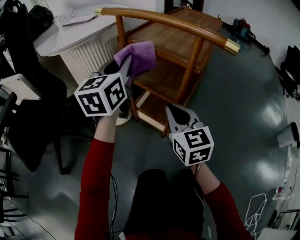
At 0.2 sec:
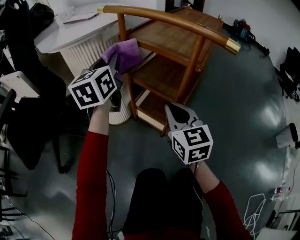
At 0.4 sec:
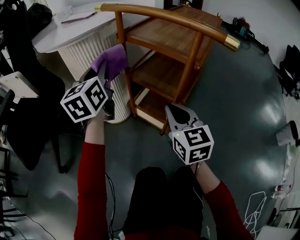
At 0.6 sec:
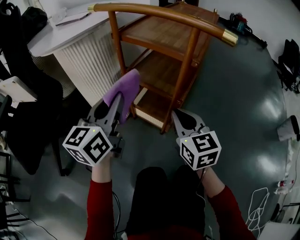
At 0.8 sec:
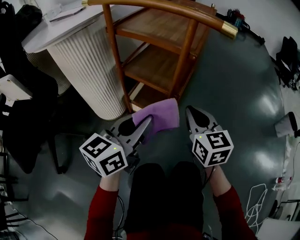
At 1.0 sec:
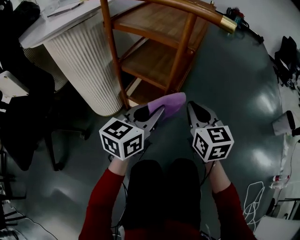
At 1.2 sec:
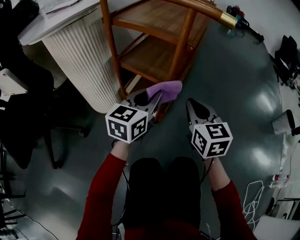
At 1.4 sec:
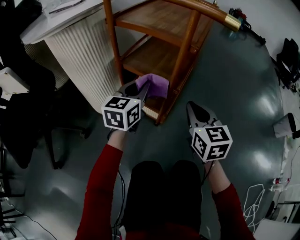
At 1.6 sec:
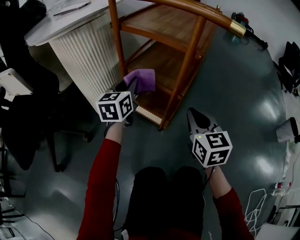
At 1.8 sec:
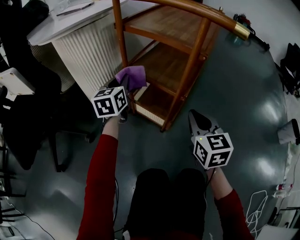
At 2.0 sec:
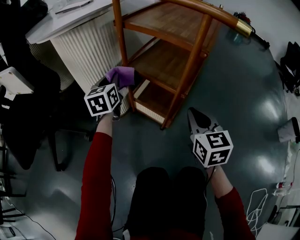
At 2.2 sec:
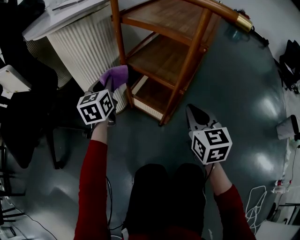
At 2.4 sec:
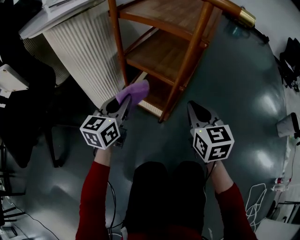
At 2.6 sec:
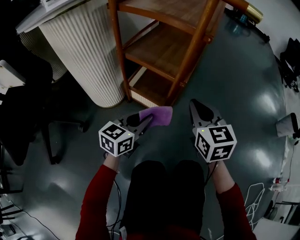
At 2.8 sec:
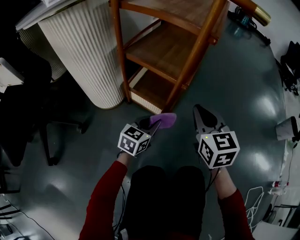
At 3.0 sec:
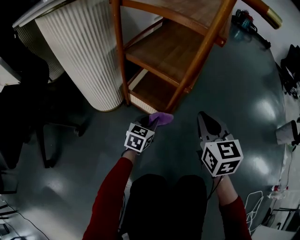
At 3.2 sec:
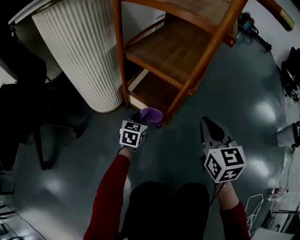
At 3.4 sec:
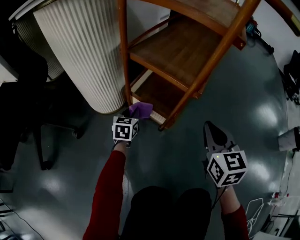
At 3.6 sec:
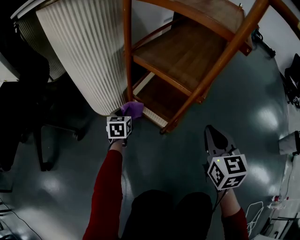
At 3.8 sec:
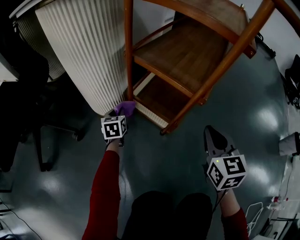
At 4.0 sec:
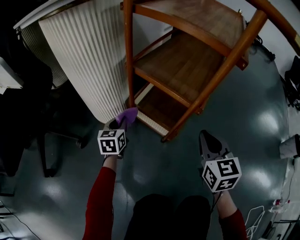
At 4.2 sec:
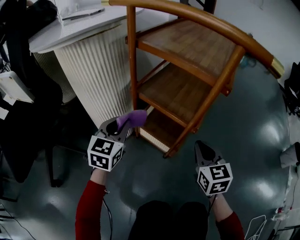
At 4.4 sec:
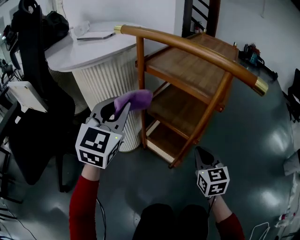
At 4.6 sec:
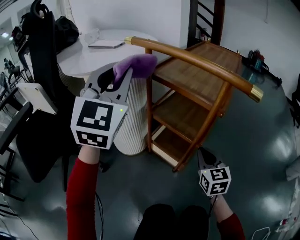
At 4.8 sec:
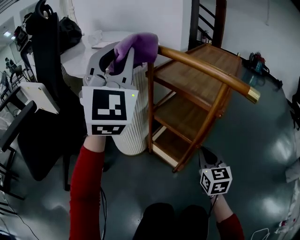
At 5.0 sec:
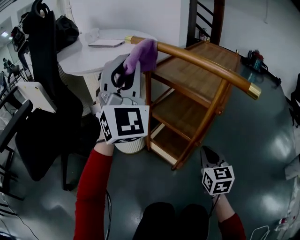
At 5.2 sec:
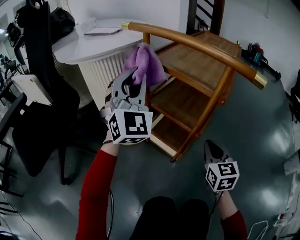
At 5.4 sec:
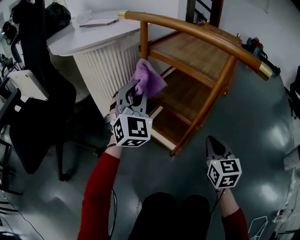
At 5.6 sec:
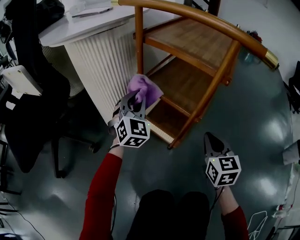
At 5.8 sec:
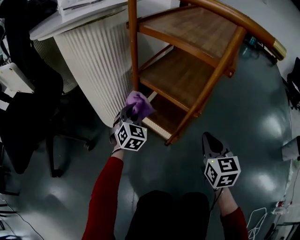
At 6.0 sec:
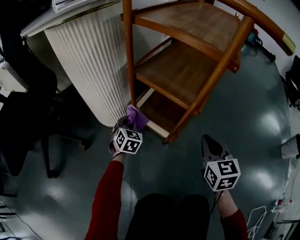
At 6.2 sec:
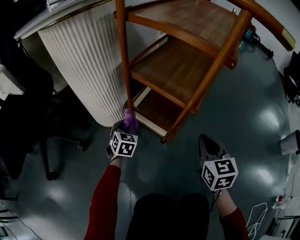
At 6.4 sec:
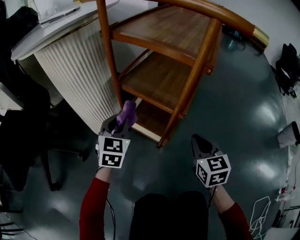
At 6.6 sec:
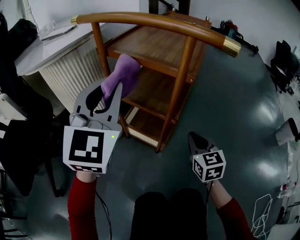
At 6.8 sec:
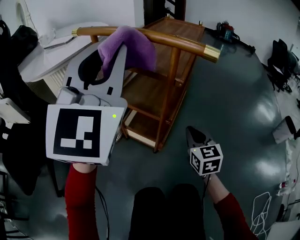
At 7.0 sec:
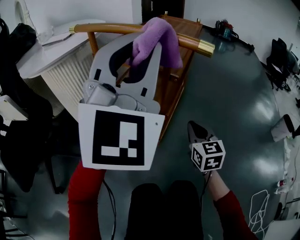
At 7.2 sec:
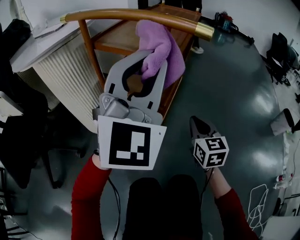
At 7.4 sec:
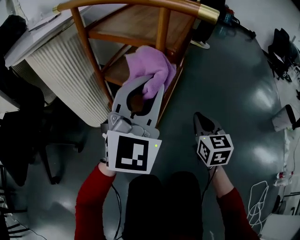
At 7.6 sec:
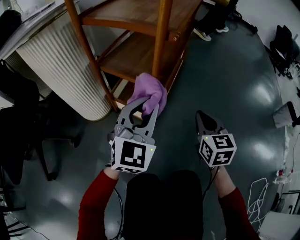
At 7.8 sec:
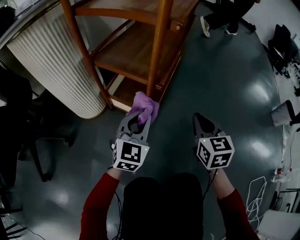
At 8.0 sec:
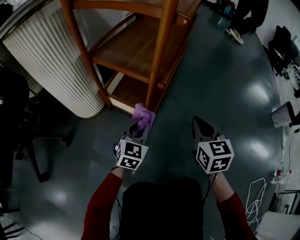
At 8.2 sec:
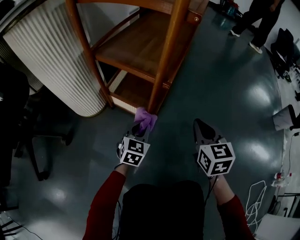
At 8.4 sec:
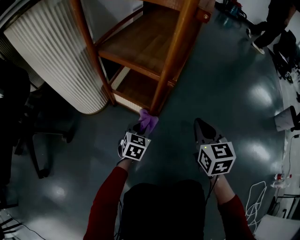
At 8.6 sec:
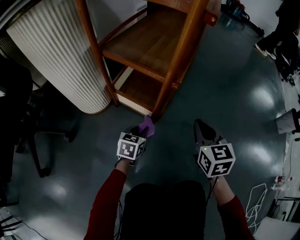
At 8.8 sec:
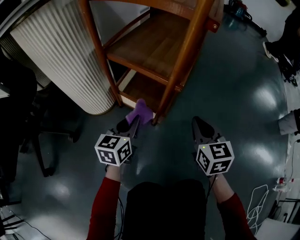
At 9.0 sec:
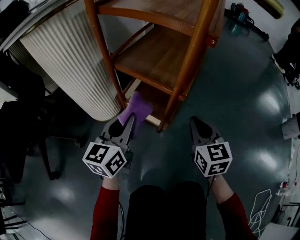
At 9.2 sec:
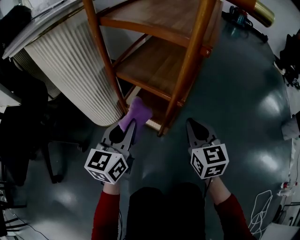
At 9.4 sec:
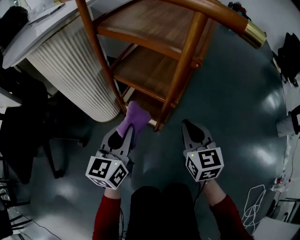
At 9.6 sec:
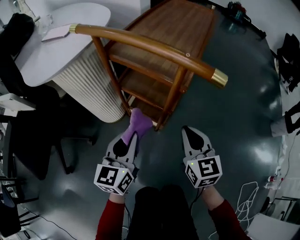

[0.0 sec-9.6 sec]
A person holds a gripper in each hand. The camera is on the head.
0.0 sec to 1.6 sec: The right gripper changes place by some 10 cm; the left gripper goes about 20 cm downward.
1.6 sec to 3.2 sec: The right gripper heads downward, covering about 5 cm; the left gripper travels downward by about 25 cm.
3.2 sec to 4.8 sec: The right gripper is displaced forward by some 5 cm; the left gripper goes roughly 60 cm upward, and angles its fingers upward, by approximately 50 degrees.
4.8 sec to 6.4 sec: The right gripper is displaced downward by some 10 cm. Meanwhile the left gripper heads downward, covering approximately 40 cm, and tilts its fingers approximately 40 degrees downward.
6.4 sec to 8.0 sec: The left gripper heads to the right, covering roughly 15 cm, and reaches approximately 40 cm upward, then returns. The right gripper moves to the right, some 5 cm, and travels upward and back again, roughly 5 cm each way.
8.0 sec to 9.6 sec: The right gripper moves upward and to the left, about 20 cm. Meanwhile the left gripper goes roughly 25 cm upward, and turns by approximately 30 degrees.

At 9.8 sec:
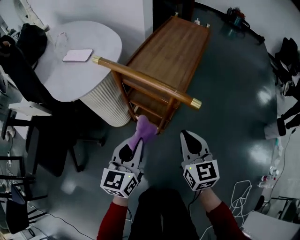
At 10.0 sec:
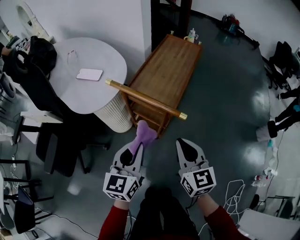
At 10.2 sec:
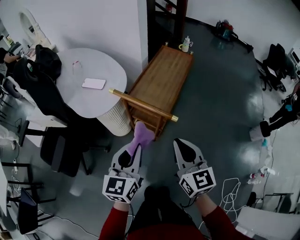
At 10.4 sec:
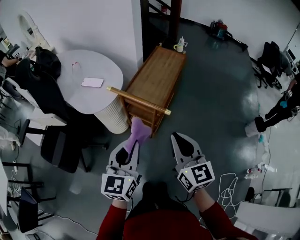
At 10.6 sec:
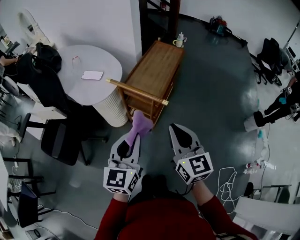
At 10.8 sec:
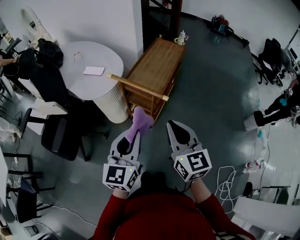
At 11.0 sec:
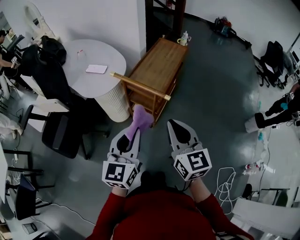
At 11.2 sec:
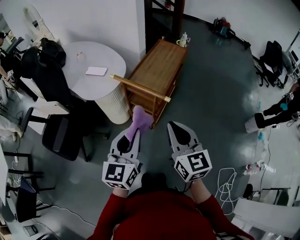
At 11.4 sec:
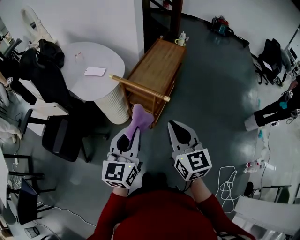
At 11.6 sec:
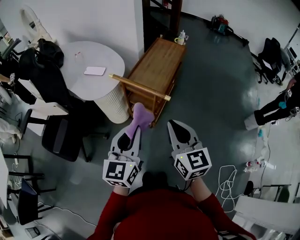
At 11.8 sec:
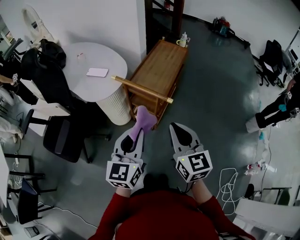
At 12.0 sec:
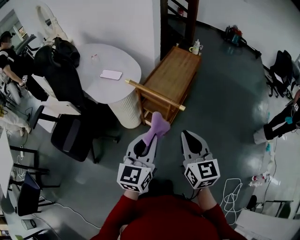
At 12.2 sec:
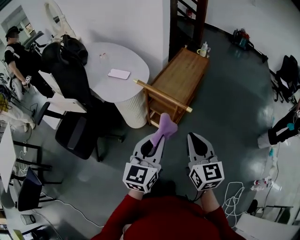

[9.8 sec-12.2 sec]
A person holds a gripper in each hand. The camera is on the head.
9.8 sec to 11.0 sec: The two grippers go roughly 30 cm upward and backward.
11.0 sec to 12.2 sec: The grippers move only a little.

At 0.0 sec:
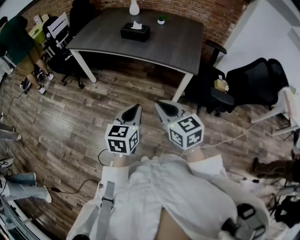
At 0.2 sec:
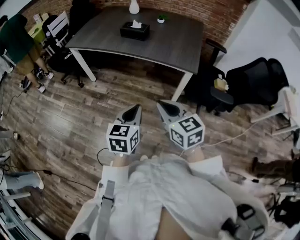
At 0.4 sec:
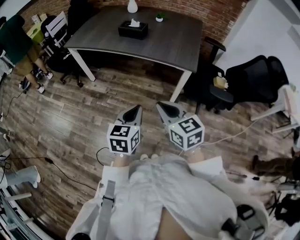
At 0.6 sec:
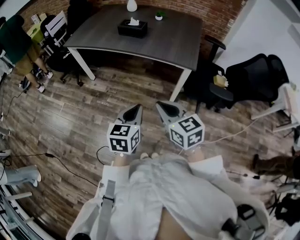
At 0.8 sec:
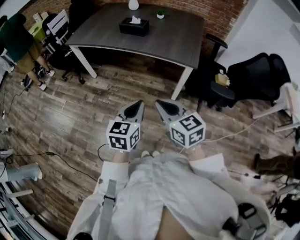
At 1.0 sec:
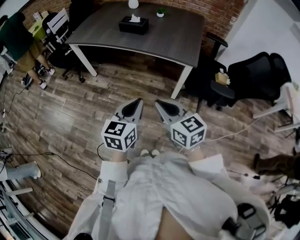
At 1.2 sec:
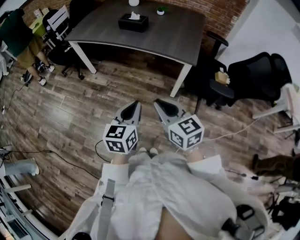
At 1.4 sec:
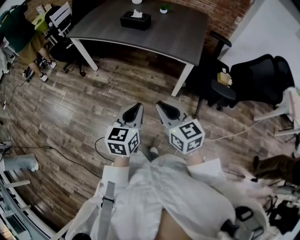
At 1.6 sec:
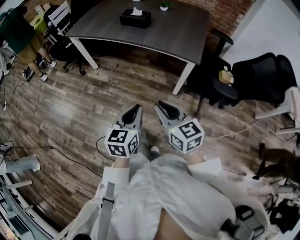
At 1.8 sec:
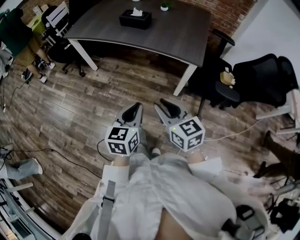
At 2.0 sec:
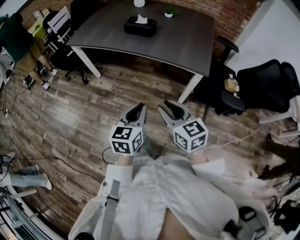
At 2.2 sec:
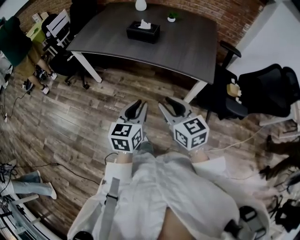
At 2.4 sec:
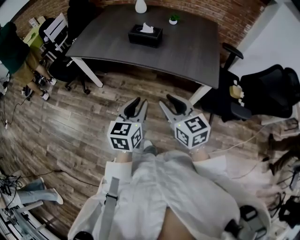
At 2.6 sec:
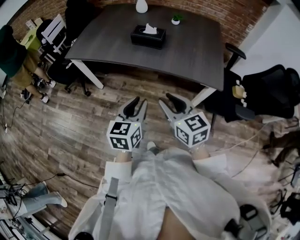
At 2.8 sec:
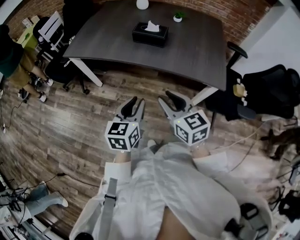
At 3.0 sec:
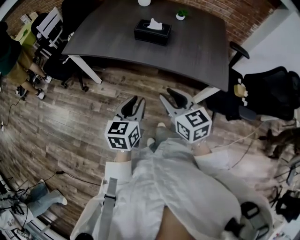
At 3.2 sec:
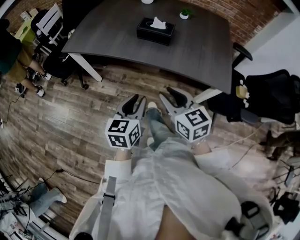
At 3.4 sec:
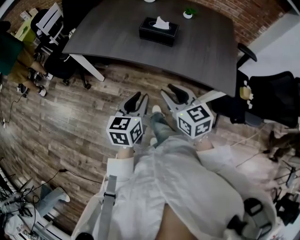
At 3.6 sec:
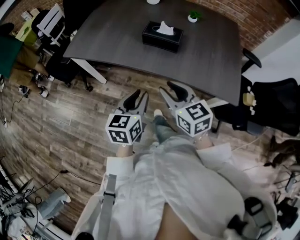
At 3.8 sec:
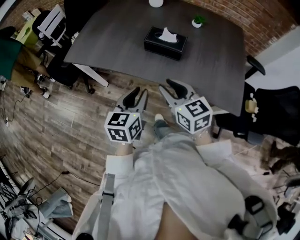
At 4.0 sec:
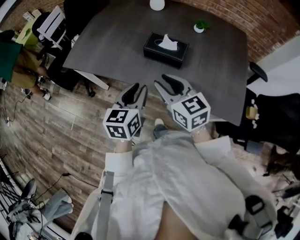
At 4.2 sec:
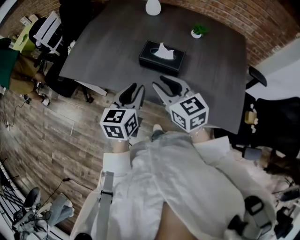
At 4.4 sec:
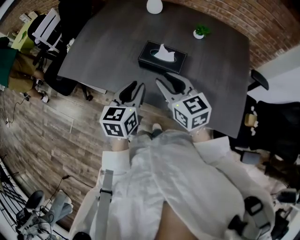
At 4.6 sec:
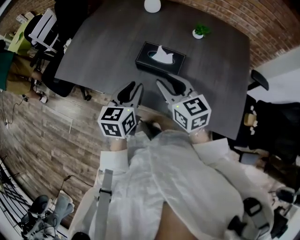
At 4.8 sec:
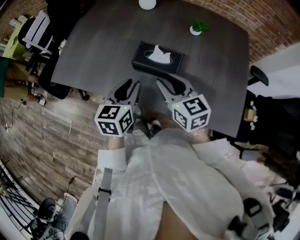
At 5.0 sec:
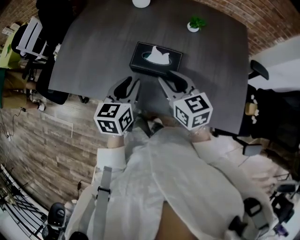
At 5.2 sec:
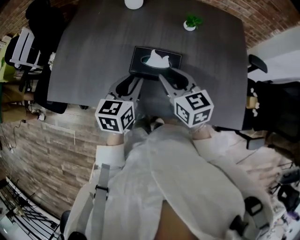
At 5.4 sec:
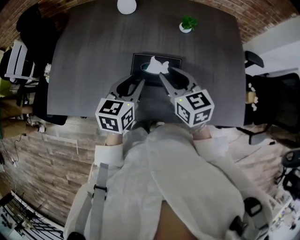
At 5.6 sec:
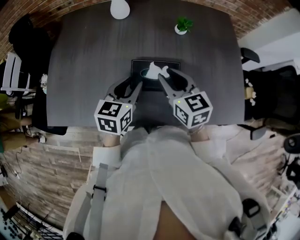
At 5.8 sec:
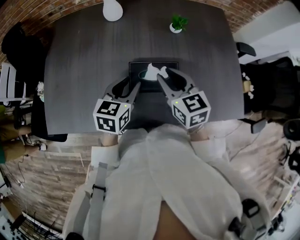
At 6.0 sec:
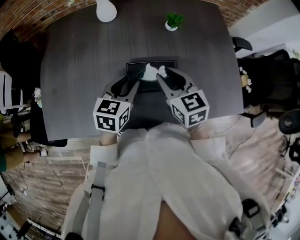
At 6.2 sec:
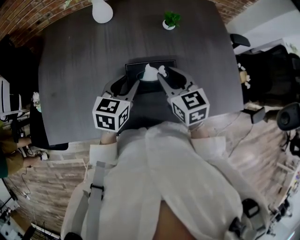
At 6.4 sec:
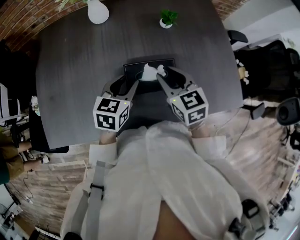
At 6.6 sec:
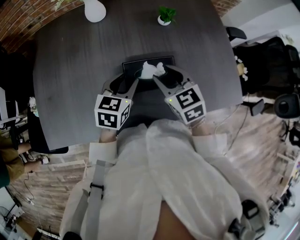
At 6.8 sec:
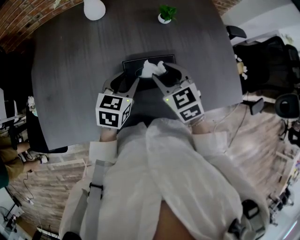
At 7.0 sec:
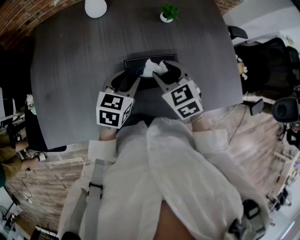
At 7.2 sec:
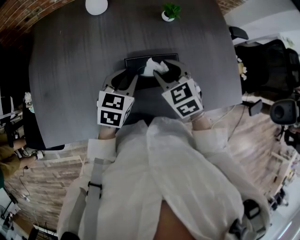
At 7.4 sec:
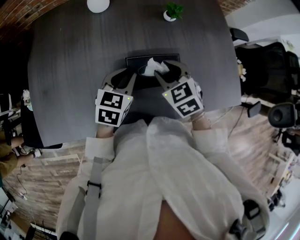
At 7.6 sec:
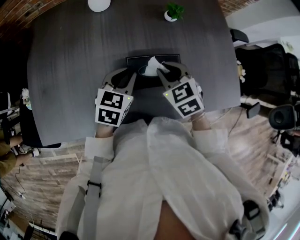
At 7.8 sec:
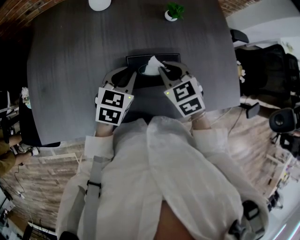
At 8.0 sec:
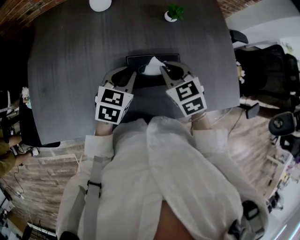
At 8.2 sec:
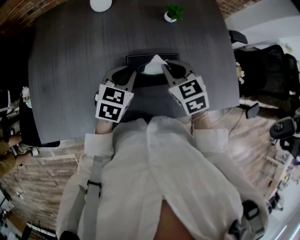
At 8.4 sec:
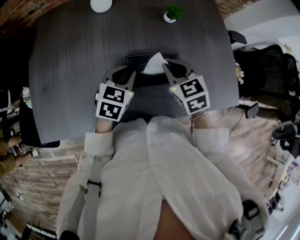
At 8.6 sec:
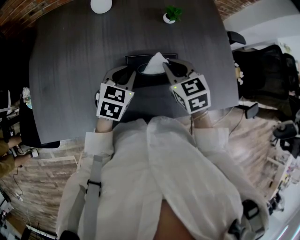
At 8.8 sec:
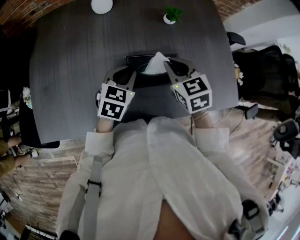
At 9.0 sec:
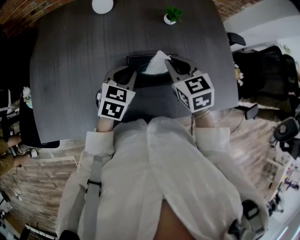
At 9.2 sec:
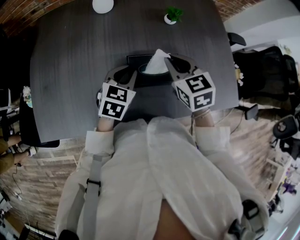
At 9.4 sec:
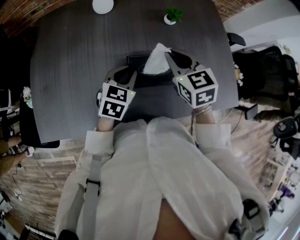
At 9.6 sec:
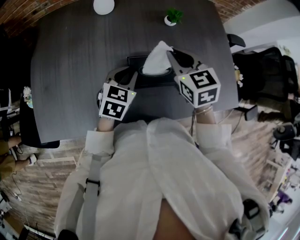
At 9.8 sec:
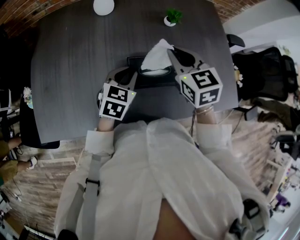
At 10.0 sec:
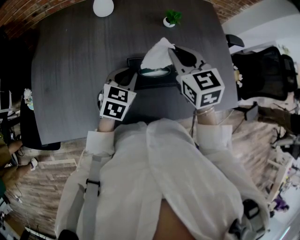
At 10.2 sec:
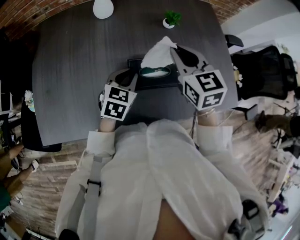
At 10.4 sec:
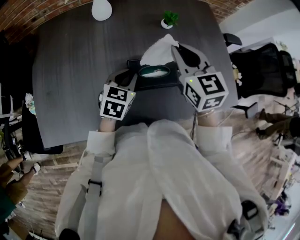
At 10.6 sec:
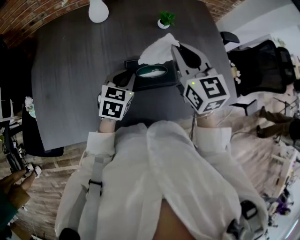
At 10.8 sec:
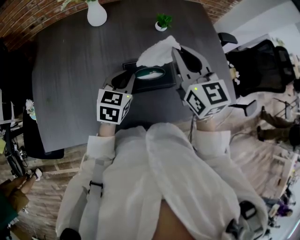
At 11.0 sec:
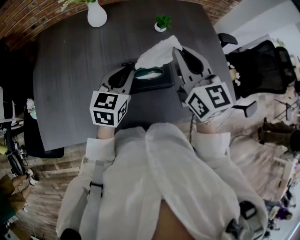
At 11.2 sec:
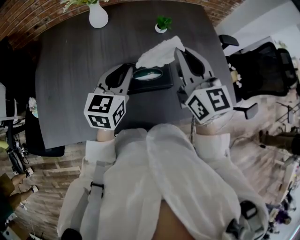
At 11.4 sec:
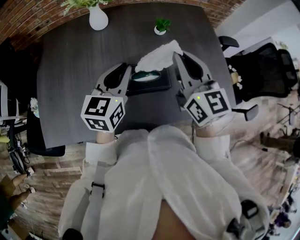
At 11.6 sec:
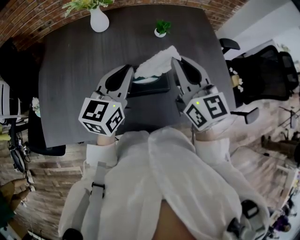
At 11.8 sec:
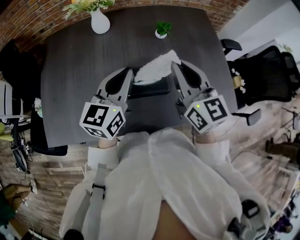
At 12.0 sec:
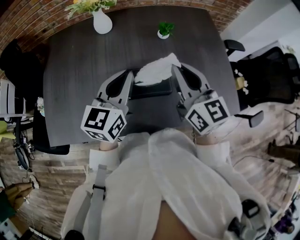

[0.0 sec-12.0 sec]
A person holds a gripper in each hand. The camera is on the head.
0.0 sec to 1.6 sec: The left gripper moves roughly 5 cm. The right gripper ends up about 5 cm from where it was.
1.6 sec to 3.0 sec: The two grippers go some 30 cm forward and to the left.
3.0 sec to 4.4 sec: The two grippers go roughly 35 cm forward.
4.4 sec to 6.0 sec: The right gripper moves roughly 15 cm, and changes its angle by approximately 30 degrees, while the left gripper moves approximately 20 cm, and rotates some 40 degrees.
6.0 sec to 7.6 sec: The right gripper travels downward by some 5 cm, and changes its angle by approximately 30 degrees.
7.6 sec to 9.0 sec: The right gripper moves roughly 5 cm.
9.0 sec to 10.4 sec: The right gripper goes roughly 10 cm upward.
10.4 sec to 12.0 sec: The left gripper goes roughly 15 cm upward, and swivels about 30 degrees; the right gripper travels to the right by approximately 5 cm, and turns by approximately 20 degrees.
